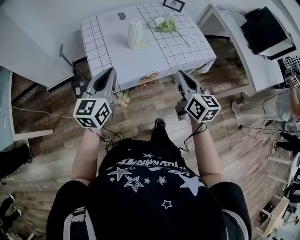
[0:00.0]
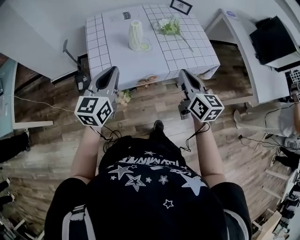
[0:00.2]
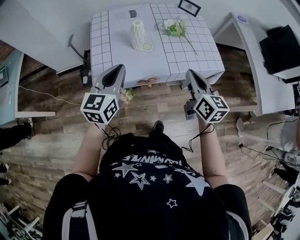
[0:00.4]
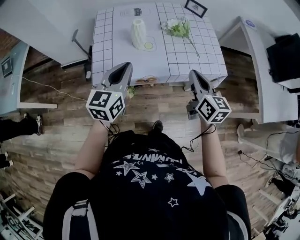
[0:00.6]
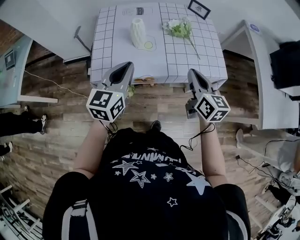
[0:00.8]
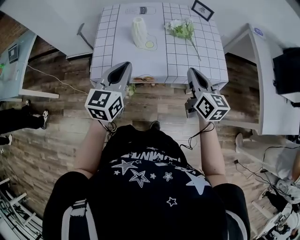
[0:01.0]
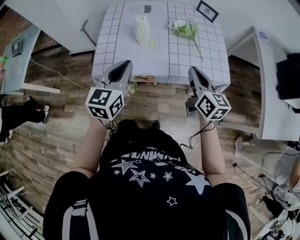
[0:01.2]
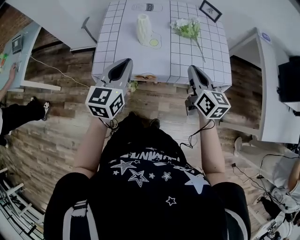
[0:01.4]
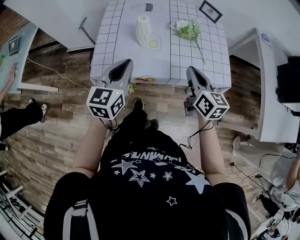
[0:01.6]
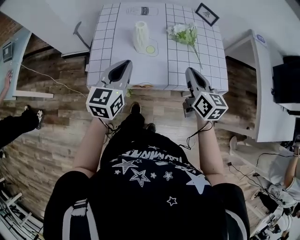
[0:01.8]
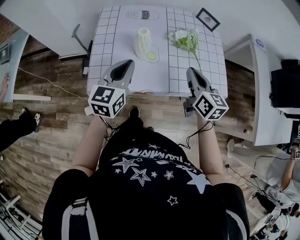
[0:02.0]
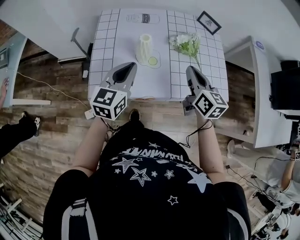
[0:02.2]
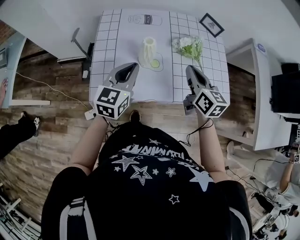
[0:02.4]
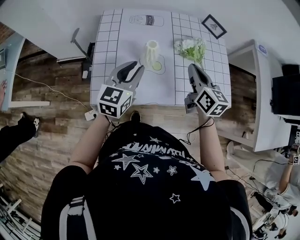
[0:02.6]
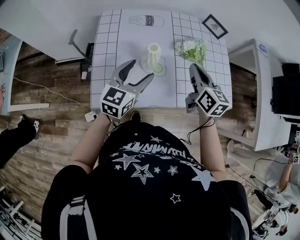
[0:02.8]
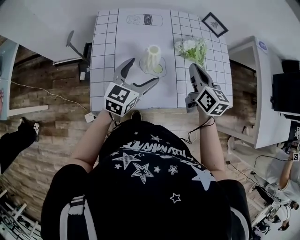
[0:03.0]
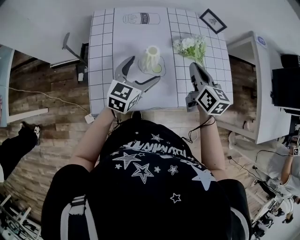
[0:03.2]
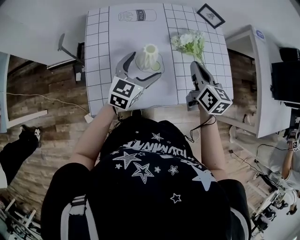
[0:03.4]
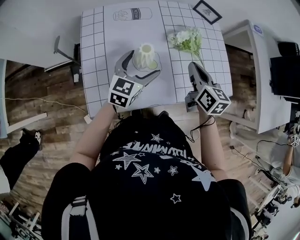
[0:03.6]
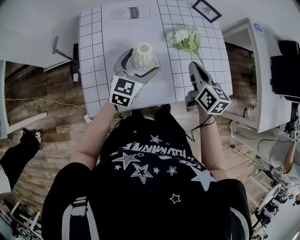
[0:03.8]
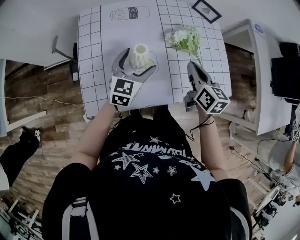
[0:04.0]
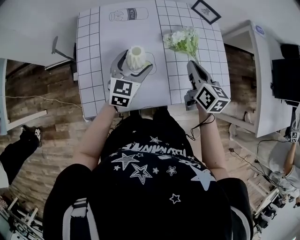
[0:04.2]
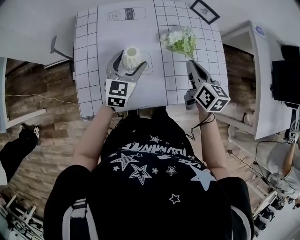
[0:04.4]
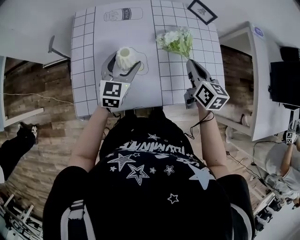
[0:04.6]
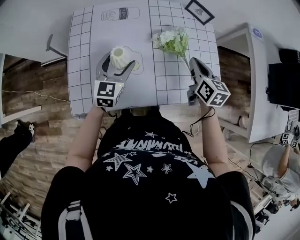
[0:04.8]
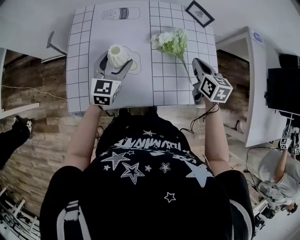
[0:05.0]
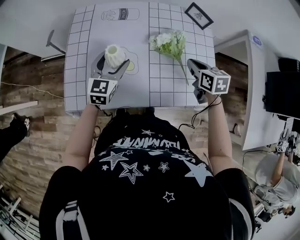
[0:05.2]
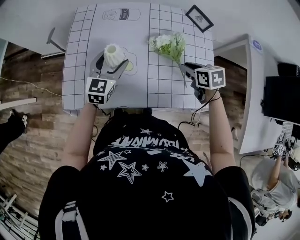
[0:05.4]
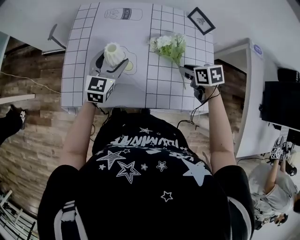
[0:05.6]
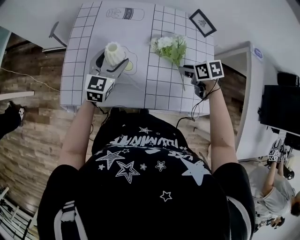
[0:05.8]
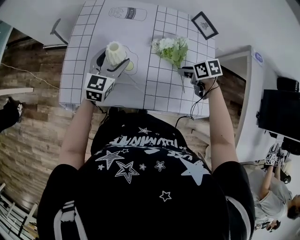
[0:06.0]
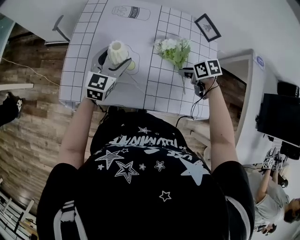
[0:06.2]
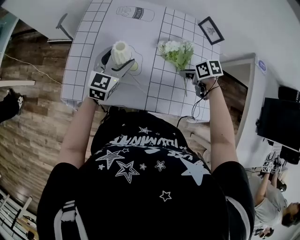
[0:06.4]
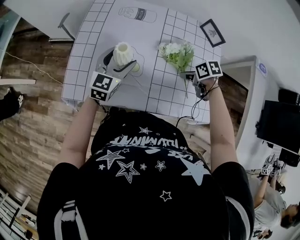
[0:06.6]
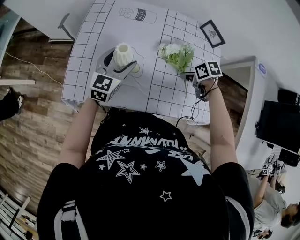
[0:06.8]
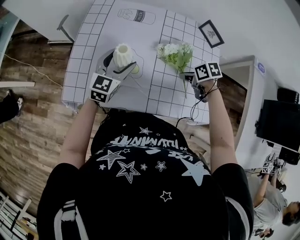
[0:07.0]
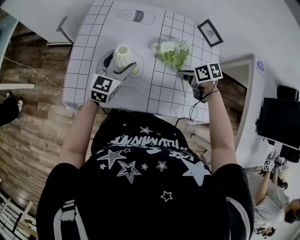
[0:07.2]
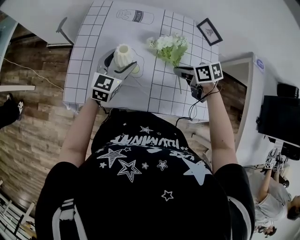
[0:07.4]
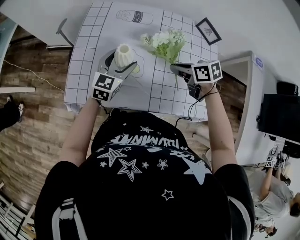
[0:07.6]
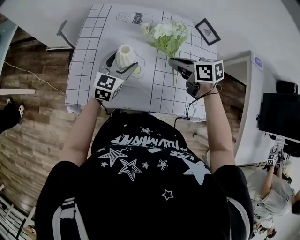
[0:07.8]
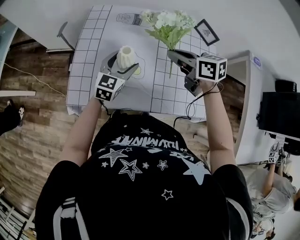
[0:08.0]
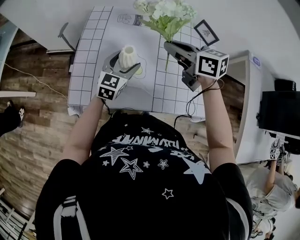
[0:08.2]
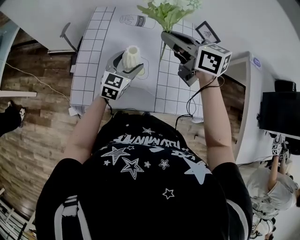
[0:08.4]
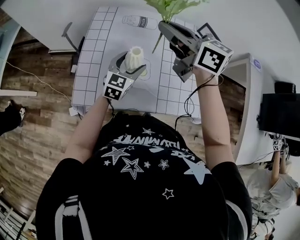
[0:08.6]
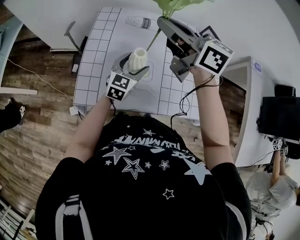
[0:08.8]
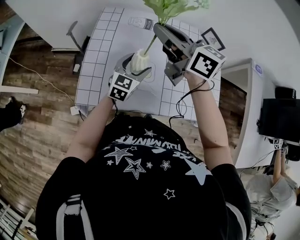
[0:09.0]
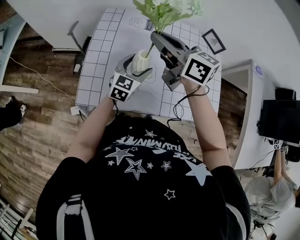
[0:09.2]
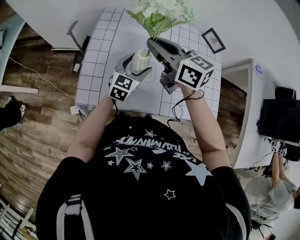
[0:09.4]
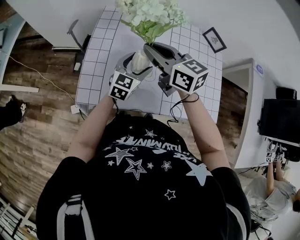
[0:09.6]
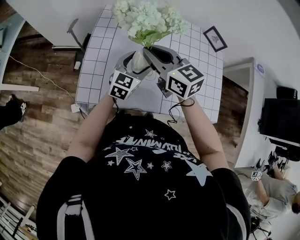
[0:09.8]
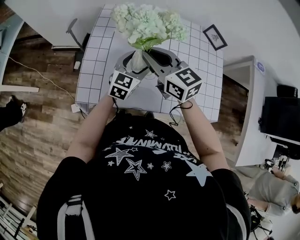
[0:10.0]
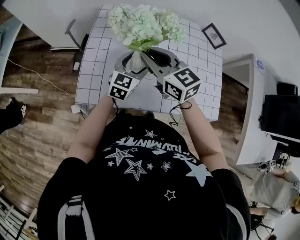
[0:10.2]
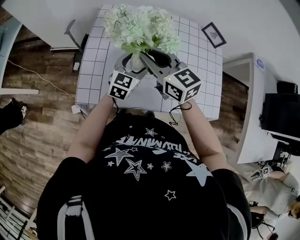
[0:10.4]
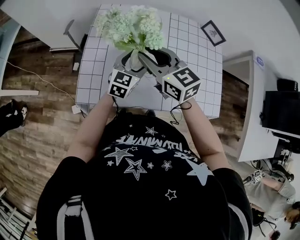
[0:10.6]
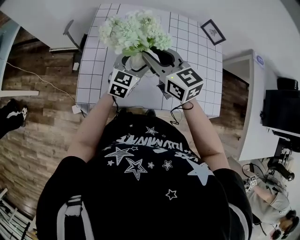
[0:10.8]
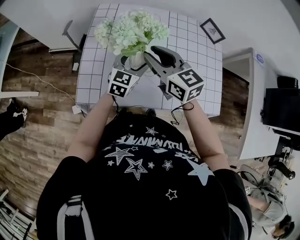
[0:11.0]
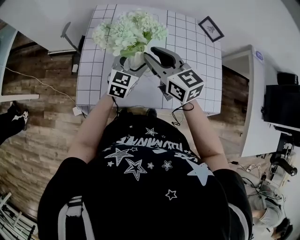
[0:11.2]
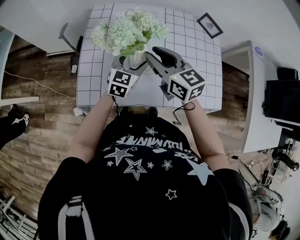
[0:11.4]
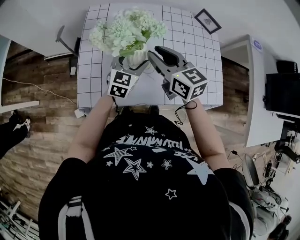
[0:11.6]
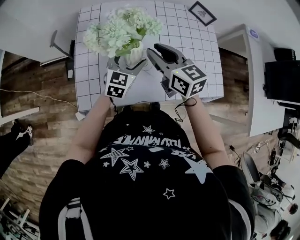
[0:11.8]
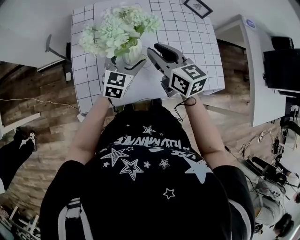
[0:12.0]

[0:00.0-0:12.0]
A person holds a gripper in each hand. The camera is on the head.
0:00.0 to 0:01.6: The right gripper heads forward and to the right, covering roughly 15 cm, while the left gripper moves to the right, approximately 10 cm.
0:01.6 to 0:03.0: The left gripper is displaced forward and downward by approximately 15 cm, and opens, while the right gripper moves forward, some 15 cm.
0:03.0 to 0:04.4: The left gripper goes roughly 5 cm forward. Meanwhile the right gripper heads to the right, covering about 5 cm.
0:04.4 to 0:06.0: The right gripper travels downward by some 10 cm, tips its fingers downward by roughly 40 degrees, and opens.
0:06.0 to 0:07.6: The right gripper moves to the left and upward, about 10 cm, and closes.
0:07.6 to 0:09.0: The right gripper goes some 30 cm upward and to the left, and tips its fingers upward by about 40 degrees.
0:09.0 to 0:10.4: The right gripper heads downward, covering some 10 cm, and changes its angle by roughly 20 degrees.
0:10.4 to 0:12.0: The right gripper is displaced to the right by some 5 cm, and swivels about 20 degrees.

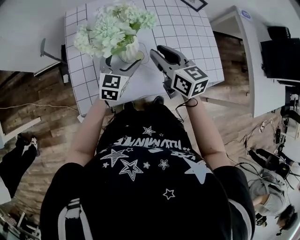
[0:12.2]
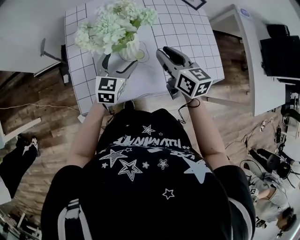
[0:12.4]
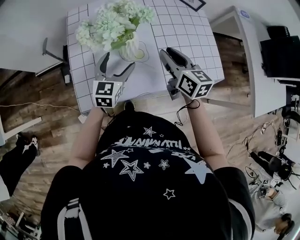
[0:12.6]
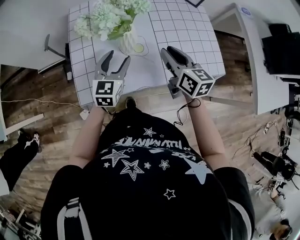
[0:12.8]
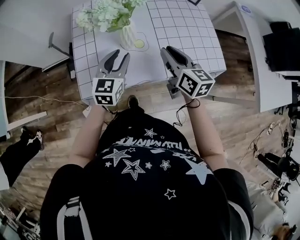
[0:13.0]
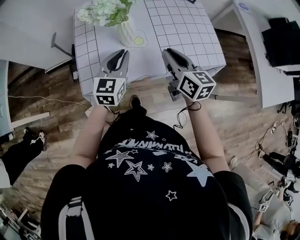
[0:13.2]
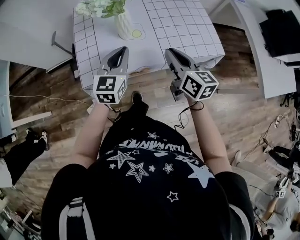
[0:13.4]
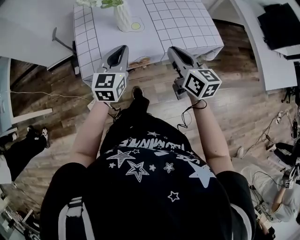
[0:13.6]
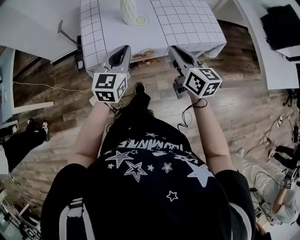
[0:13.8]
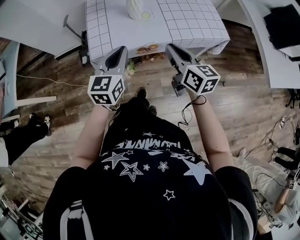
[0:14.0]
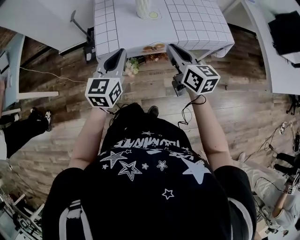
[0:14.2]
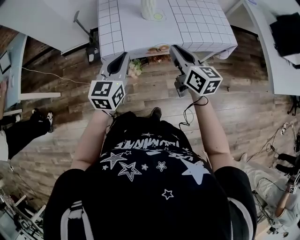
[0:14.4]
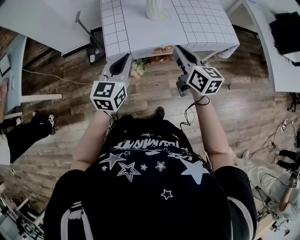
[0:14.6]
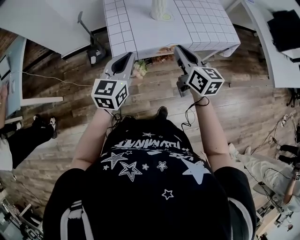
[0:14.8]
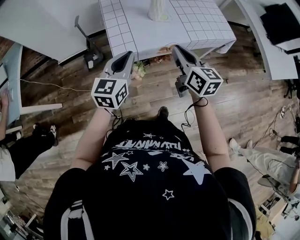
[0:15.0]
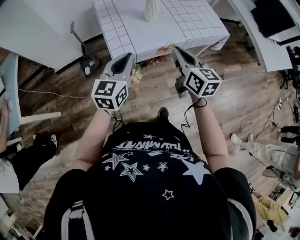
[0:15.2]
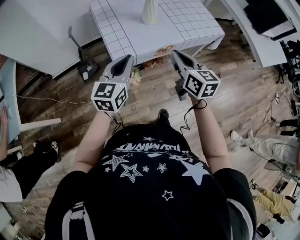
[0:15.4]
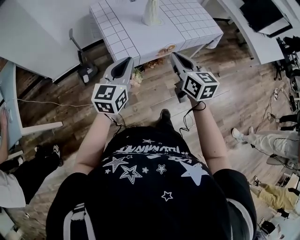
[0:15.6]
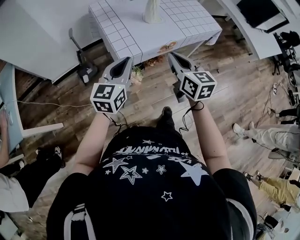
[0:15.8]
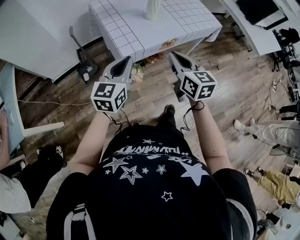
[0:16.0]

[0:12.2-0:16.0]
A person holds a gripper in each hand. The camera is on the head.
0:12.2 to 0:13.4: The left gripper moves backward and upward, approximately 15 cm, and closes, while the right gripper heads backward and to the right, covering about 15 cm.
0:13.4 to 0:14.8: The right gripper goes about 15 cm to the left and backward. Meanwhile the left gripper shifts some 20 cm backward and to the left.
0:14.8 to 0:16.0: The right gripper heads backward and to the left, covering some 15 cm; the left gripper travels to the left by some 10 cm.

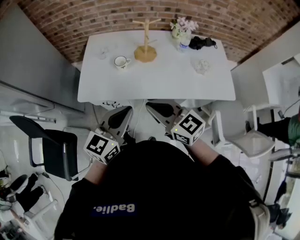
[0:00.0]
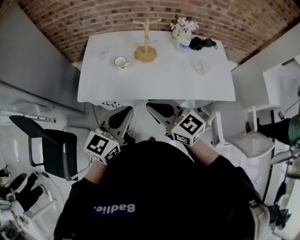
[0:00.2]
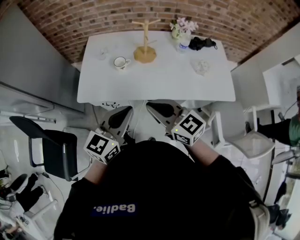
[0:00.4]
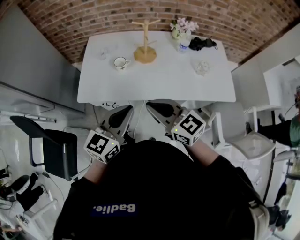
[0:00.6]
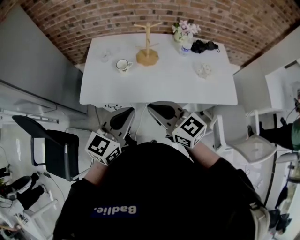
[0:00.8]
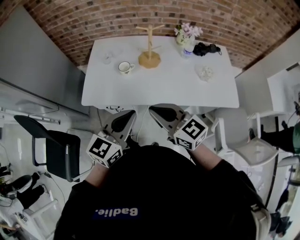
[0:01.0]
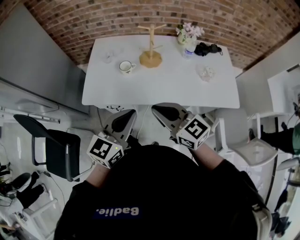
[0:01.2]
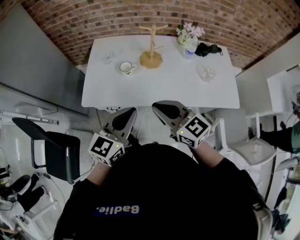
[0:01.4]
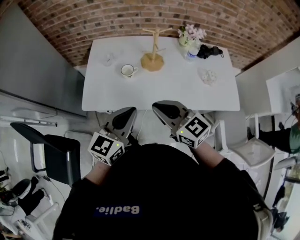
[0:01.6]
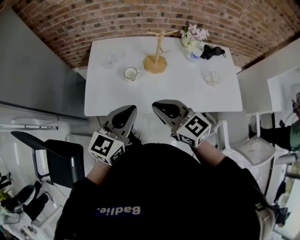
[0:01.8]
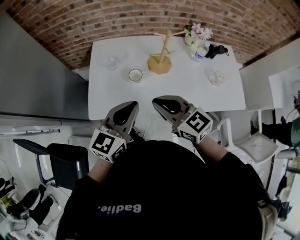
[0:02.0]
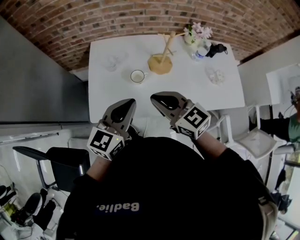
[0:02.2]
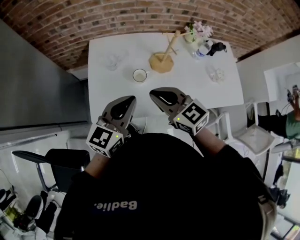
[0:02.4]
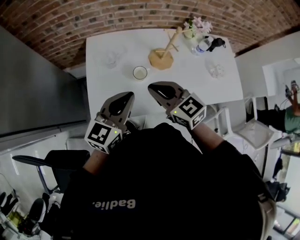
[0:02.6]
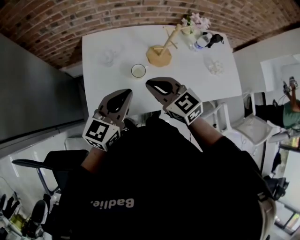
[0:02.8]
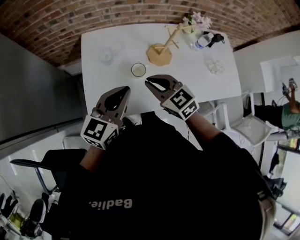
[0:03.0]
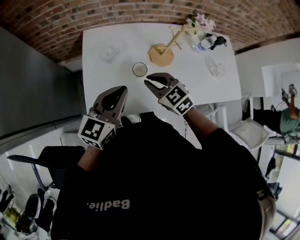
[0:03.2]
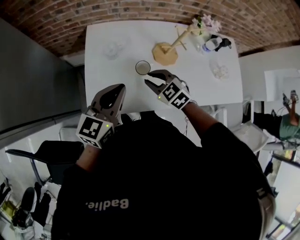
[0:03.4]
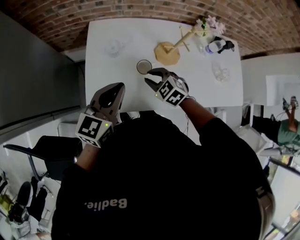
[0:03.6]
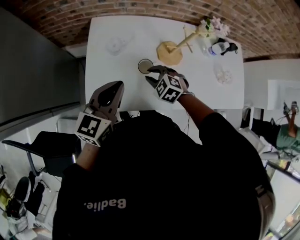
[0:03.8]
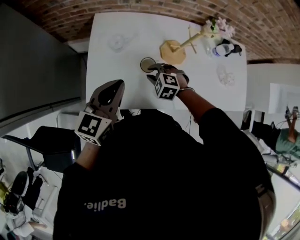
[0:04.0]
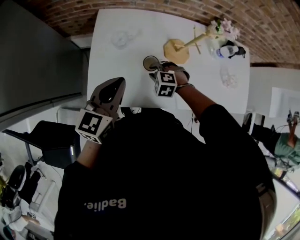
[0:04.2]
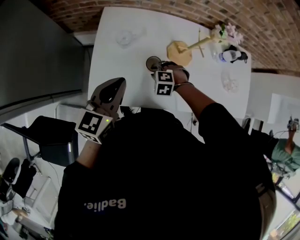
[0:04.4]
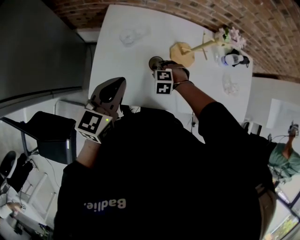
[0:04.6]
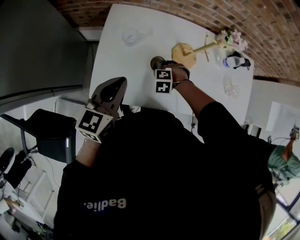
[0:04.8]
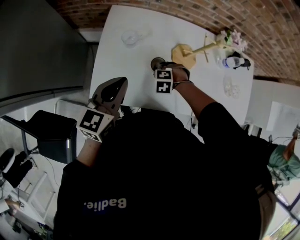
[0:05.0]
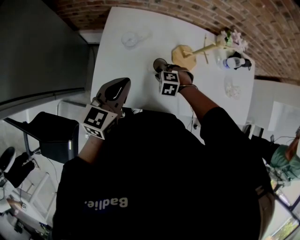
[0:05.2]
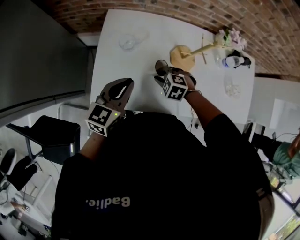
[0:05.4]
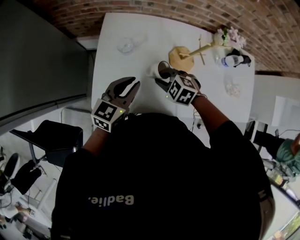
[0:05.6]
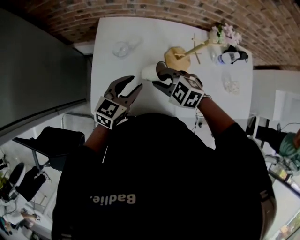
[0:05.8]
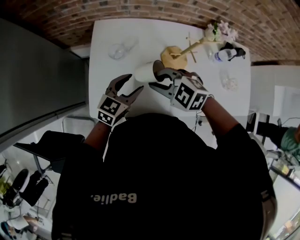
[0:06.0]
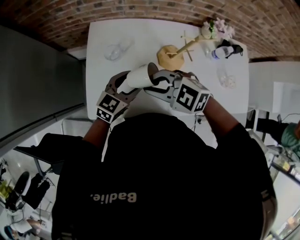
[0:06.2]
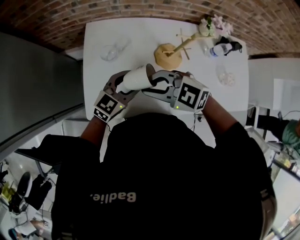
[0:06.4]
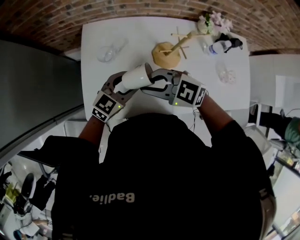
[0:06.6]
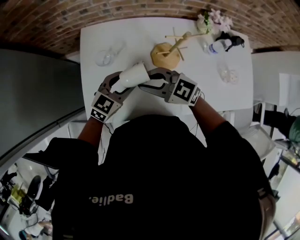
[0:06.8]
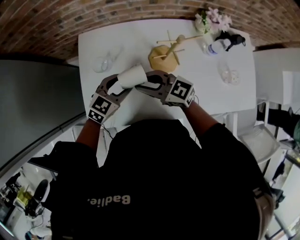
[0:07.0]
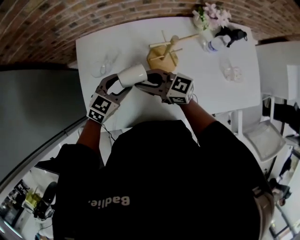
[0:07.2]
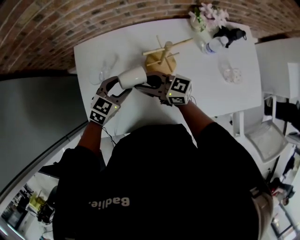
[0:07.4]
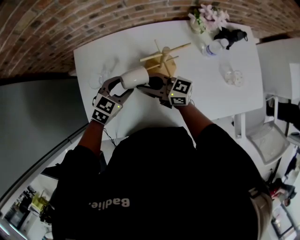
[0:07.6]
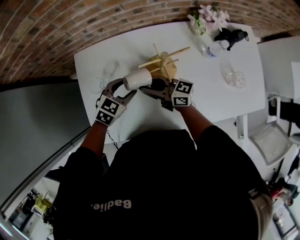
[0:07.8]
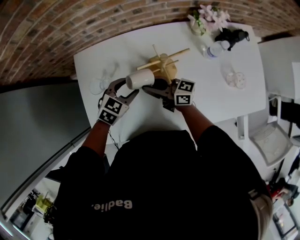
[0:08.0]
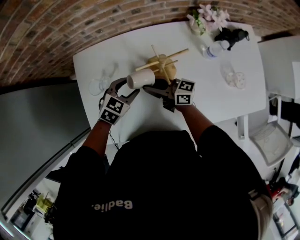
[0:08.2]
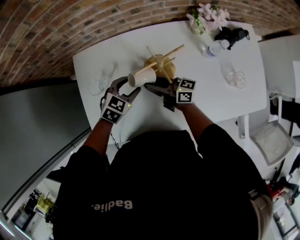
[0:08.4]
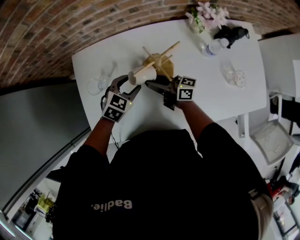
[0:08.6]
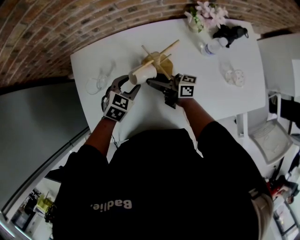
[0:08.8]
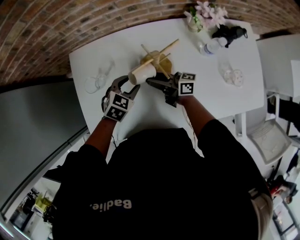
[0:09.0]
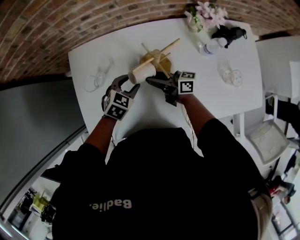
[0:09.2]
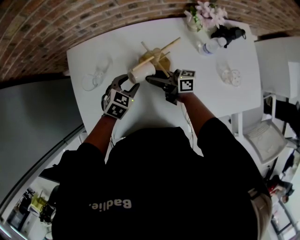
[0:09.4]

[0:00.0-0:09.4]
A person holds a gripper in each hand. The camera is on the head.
0:00.0 to 0:01.6: The two grippers go approximately 5 cm forward.
0:01.6 to 0:03.2: The right gripper heads forward, to the left and downward, covering approximately 25 cm, and rotates some 30 degrees. The left gripper is displaced forward and to the left by approximately 25 cm.
0:03.2 to 0:04.8: The left gripper moves roughly 5 cm. The right gripper is displaced downward by roughly 20 cm, and angles its fingers downward, by about 40 degrees.
0:04.8 to 0:06.2: The left gripper changes place by some 15 cm, changes its angle by some 30 degrees, and opens its fingers. The right gripper goes roughly 25 cm upward, and tips its fingers upward by roughly 40 degrees.
0:06.2 to 0:07.8: The left gripper ends up approximately 15 cm from where it was, and swivels some 30 degrees, while the right gripper changes place by some 20 cm, and angles its fingers upward, by about 40 degrees.
0:07.8 to 0:09.4: The right gripper goes about 10 cm downward and to the right, and changes its angle by some 20 degrees. The left gripper moves roughly 5 cm.
